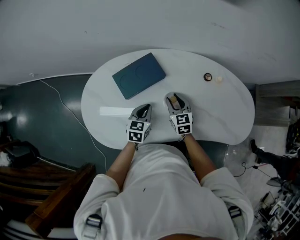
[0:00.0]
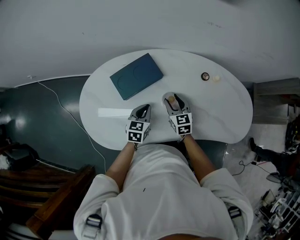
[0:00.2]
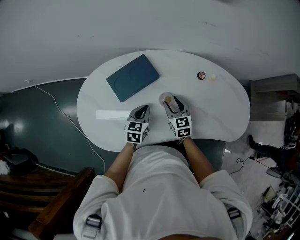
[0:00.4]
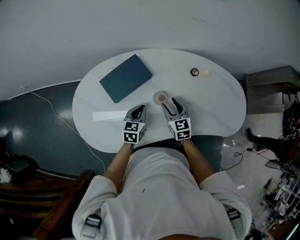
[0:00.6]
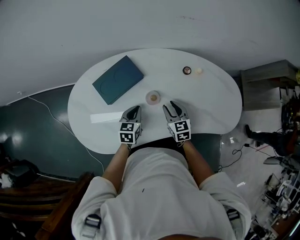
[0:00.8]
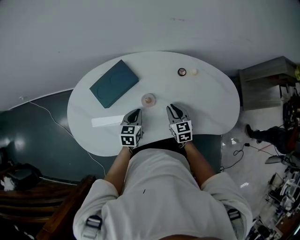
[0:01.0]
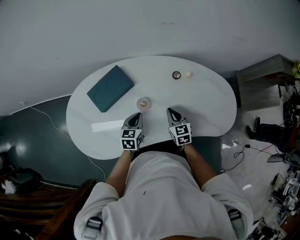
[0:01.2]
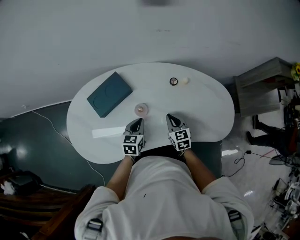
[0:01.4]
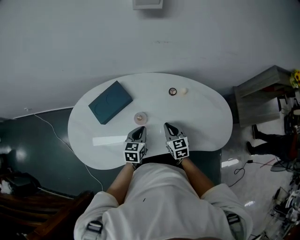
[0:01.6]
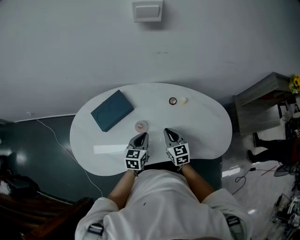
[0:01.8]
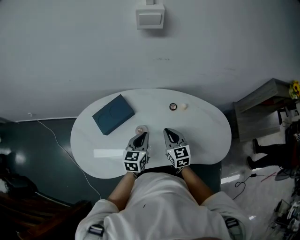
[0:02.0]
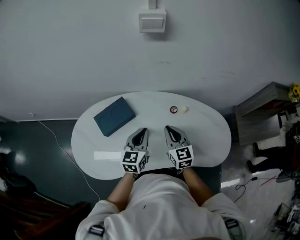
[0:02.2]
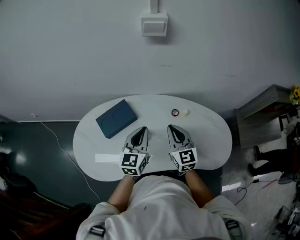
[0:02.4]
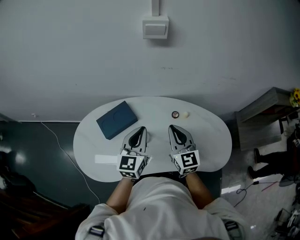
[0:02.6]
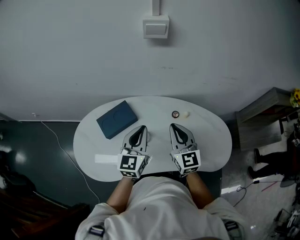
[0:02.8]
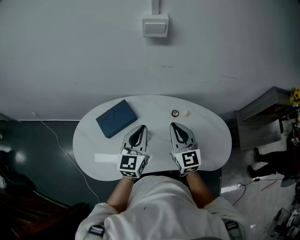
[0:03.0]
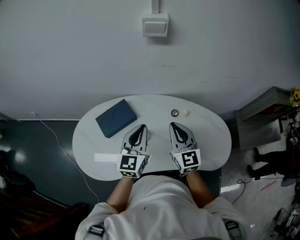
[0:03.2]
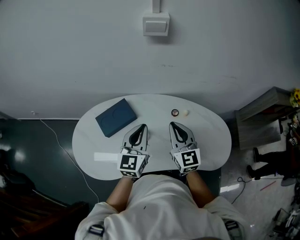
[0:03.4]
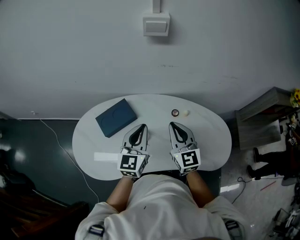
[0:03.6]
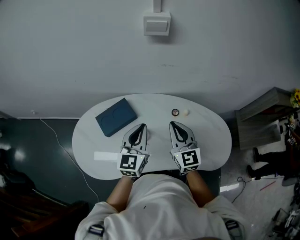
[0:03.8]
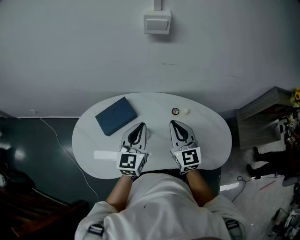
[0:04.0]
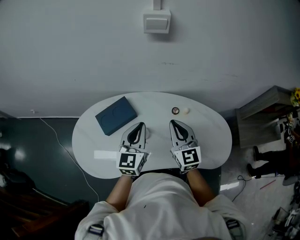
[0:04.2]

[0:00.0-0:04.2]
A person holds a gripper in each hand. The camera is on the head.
0:00.0 to 0:01.4: Both grippers move to the right, some 15 cm. The right gripper closes.
0:01.4 to 0:02.8: Both grippers move upward, some 25 cm. The left gripper turns by roughly 30 degrees. The right gripper rotates approximately 30 degrees.
0:02.8 to 0:04.2: Both grippers stay put.

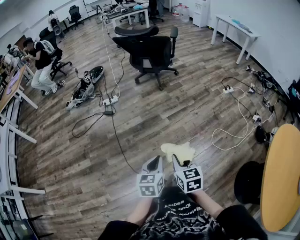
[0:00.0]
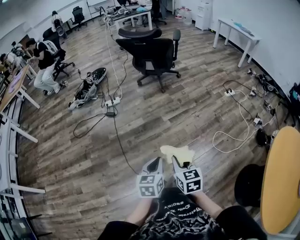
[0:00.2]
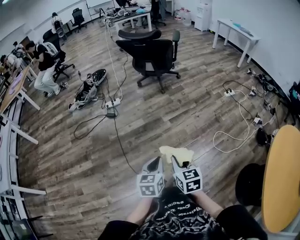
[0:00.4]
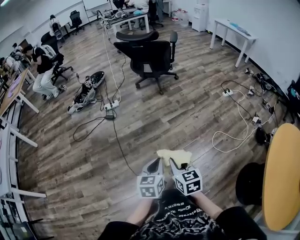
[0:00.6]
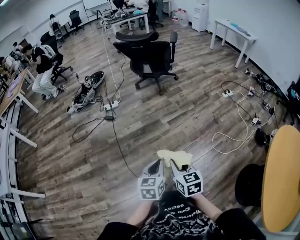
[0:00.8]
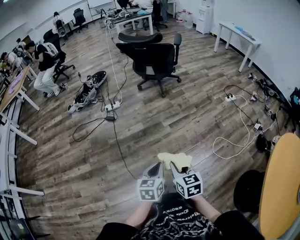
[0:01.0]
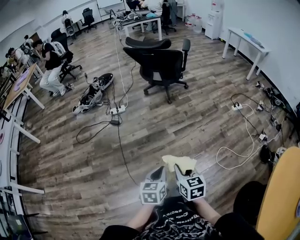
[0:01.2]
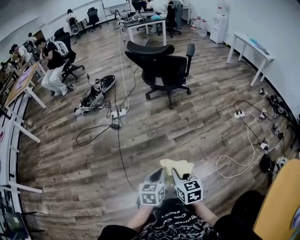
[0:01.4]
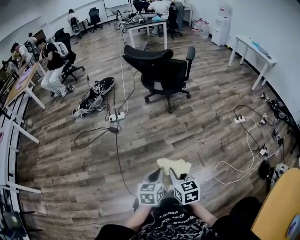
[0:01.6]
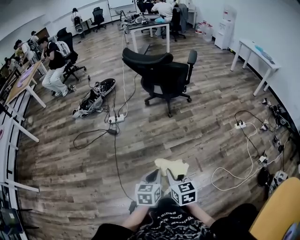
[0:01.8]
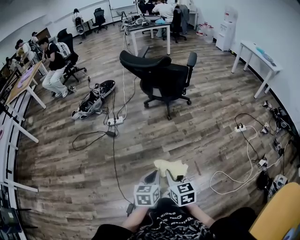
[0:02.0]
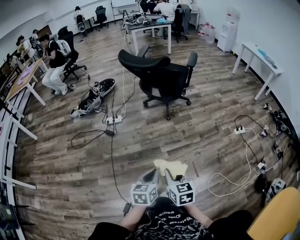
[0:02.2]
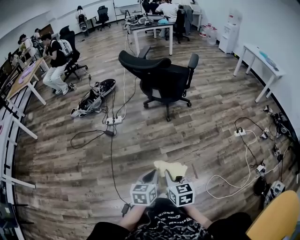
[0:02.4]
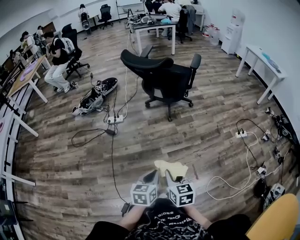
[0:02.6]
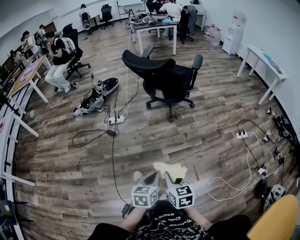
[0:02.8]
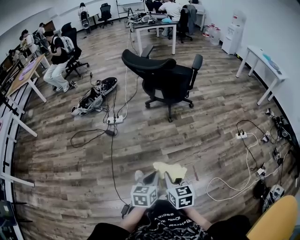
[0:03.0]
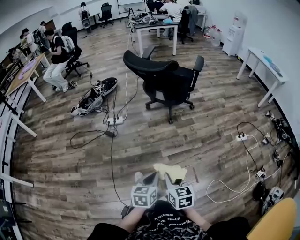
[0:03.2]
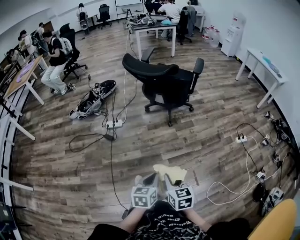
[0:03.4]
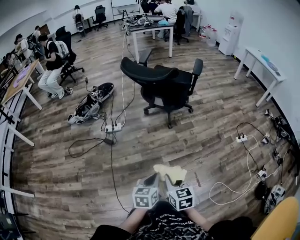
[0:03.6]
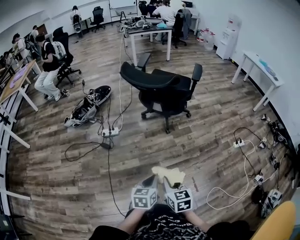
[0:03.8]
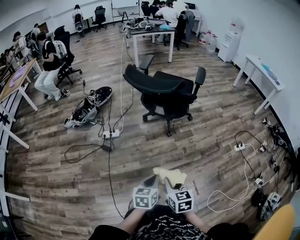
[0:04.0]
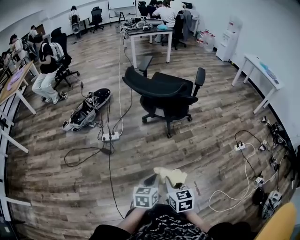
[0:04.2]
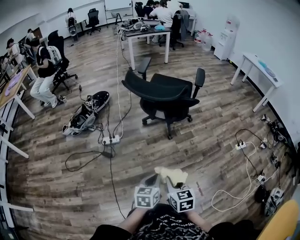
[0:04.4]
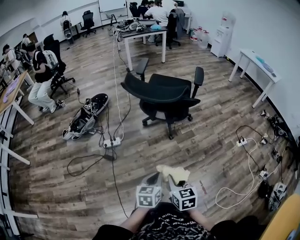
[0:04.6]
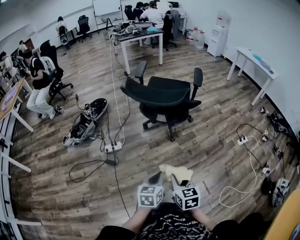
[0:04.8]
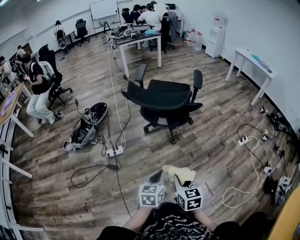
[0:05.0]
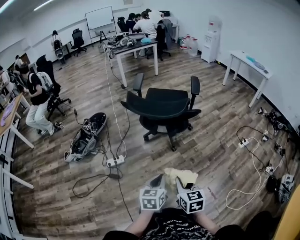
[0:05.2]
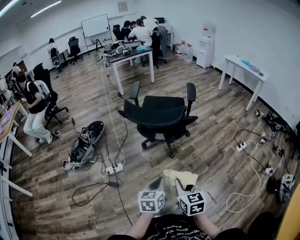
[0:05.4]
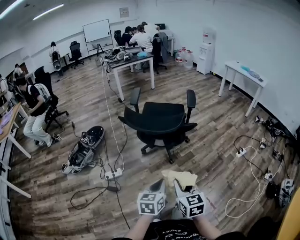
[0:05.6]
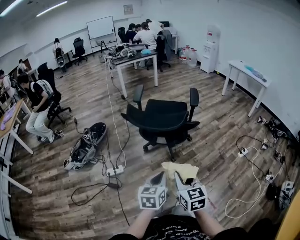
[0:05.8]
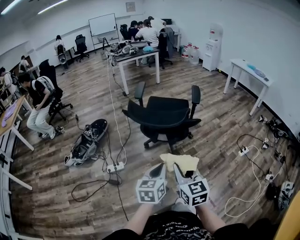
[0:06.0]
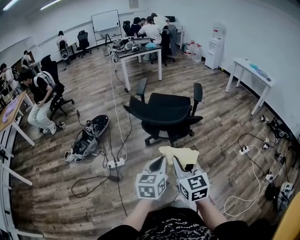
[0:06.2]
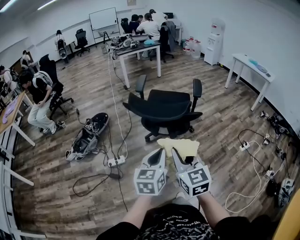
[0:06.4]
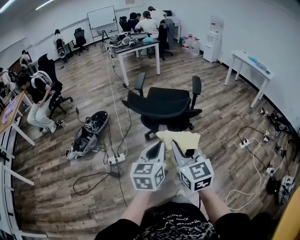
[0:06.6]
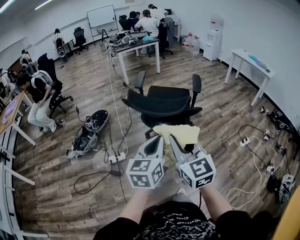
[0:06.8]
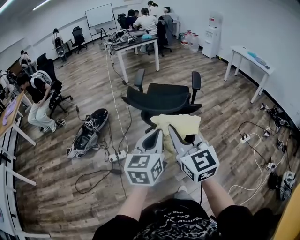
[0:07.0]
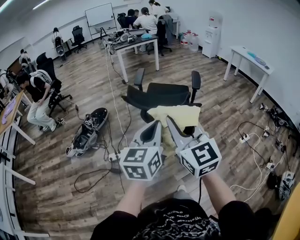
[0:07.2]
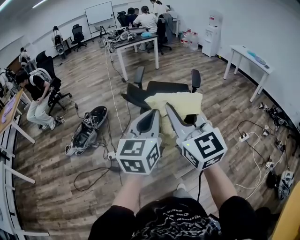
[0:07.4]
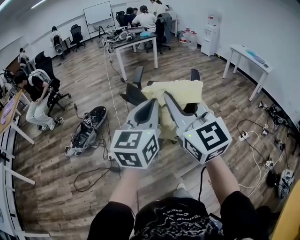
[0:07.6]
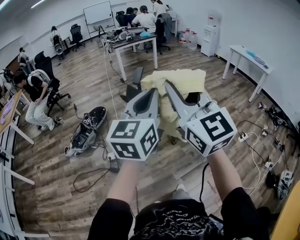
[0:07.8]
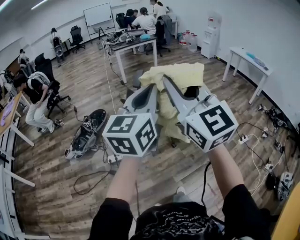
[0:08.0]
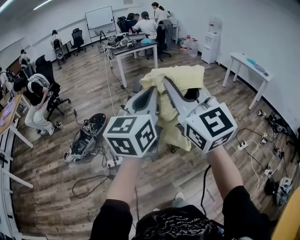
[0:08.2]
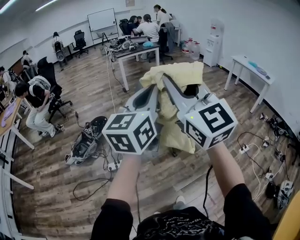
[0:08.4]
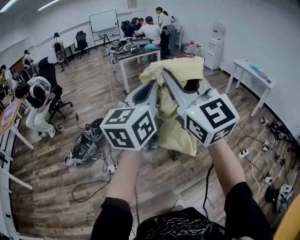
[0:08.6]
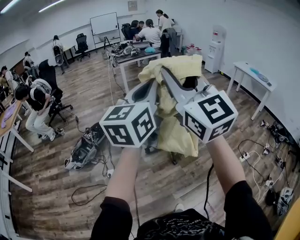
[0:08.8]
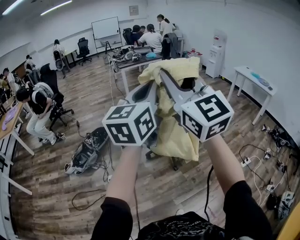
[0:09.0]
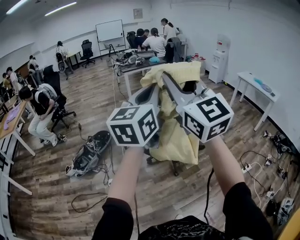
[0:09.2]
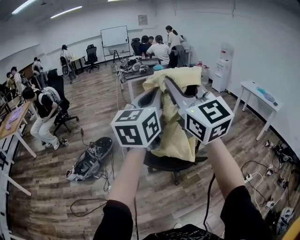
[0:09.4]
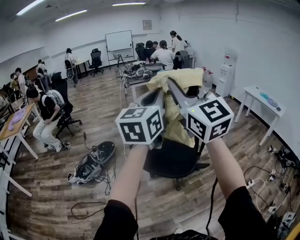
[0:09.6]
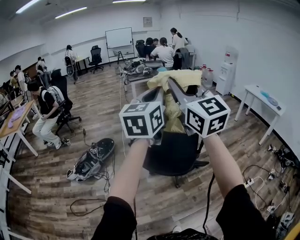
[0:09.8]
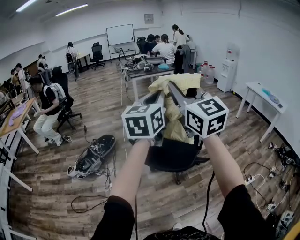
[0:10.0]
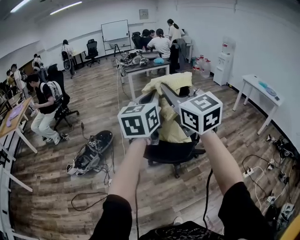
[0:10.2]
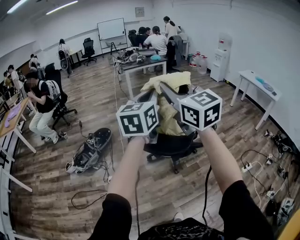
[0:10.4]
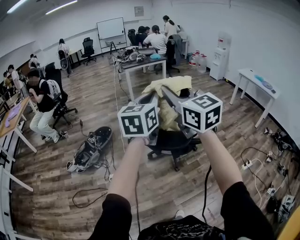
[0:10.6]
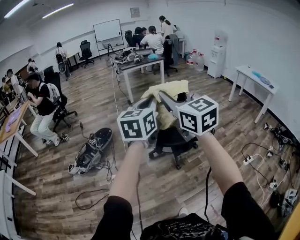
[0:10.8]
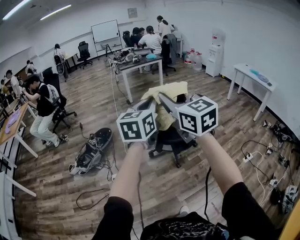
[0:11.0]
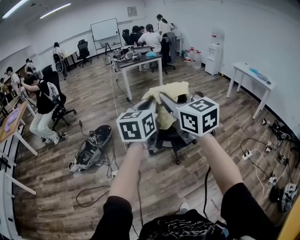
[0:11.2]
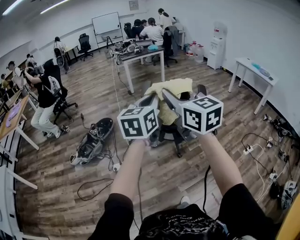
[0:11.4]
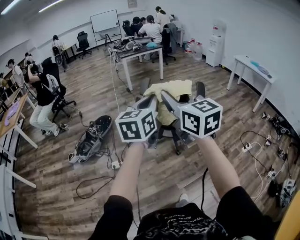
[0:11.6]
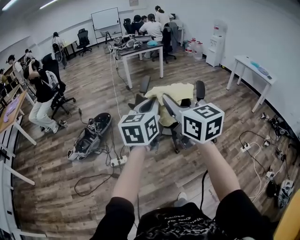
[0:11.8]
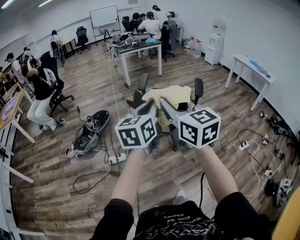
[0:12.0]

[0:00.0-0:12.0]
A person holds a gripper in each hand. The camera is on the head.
0:00.0 to 0:01.6: The grippers both shift forward by about 15 cm.
0:01.6 to 0:03.0: The grippers both shift forward by approximately 10 cm.
0:03.0 to 0:04.4: The right gripper travels forward and to the left by some 20 cm; the left gripper heads forward, covering about 20 cm.
0:04.4 to 0:06.0: The right gripper shifts roughly 20 cm upward and forward, and rotates about 20 degrees. The left gripper moves forward and upward, approximately 20 cm.
0:06.0 to 0:07.6: The grippers both shift upward by approximately 25 cm. The left gripper turns by approximately 30 degrees; the right gripper changes its angle by roughly 30 degrees.
0:07.6 to 0:09.0: The left gripper is displaced forward and upward by some 20 cm. Meanwhile the right gripper shifts about 20 cm upward and forward.
0:09.0 to 0:10.4: Both grippers travel together forward and downward, some 10 cm.
0:10.4 to 0:12.0: The grippers both shift backward and downward by roughly 20 cm.

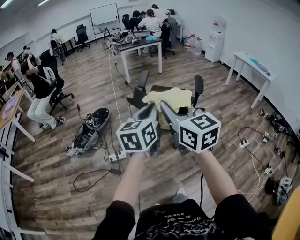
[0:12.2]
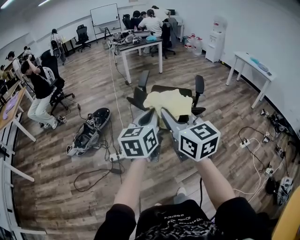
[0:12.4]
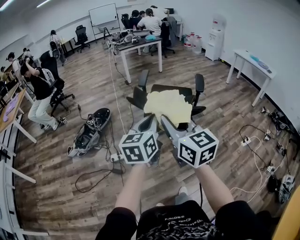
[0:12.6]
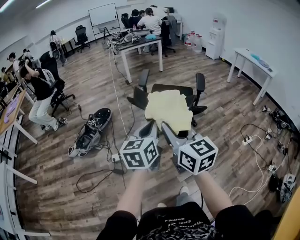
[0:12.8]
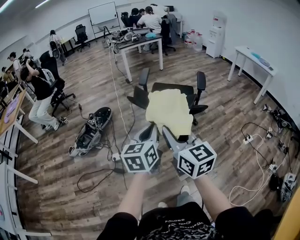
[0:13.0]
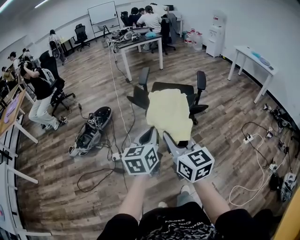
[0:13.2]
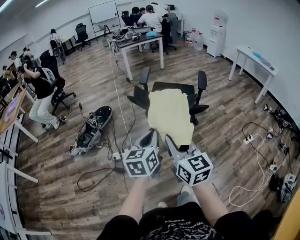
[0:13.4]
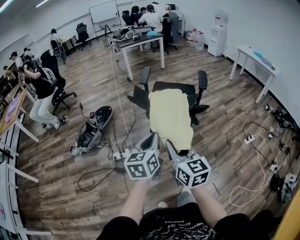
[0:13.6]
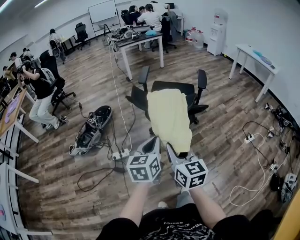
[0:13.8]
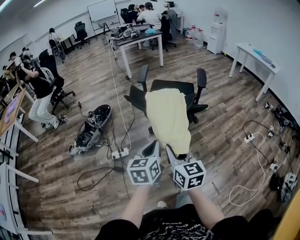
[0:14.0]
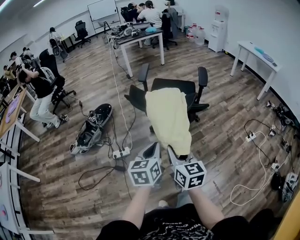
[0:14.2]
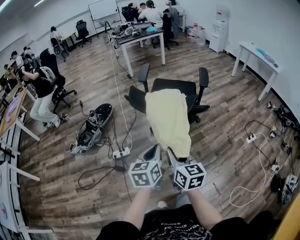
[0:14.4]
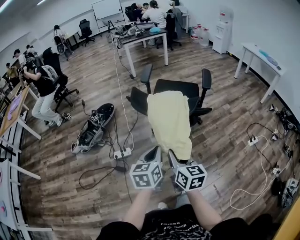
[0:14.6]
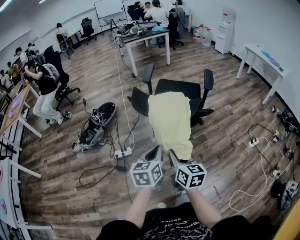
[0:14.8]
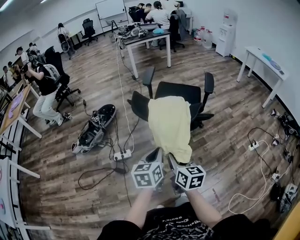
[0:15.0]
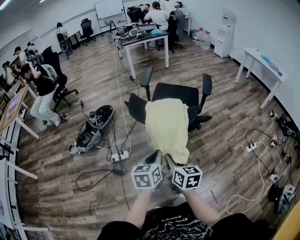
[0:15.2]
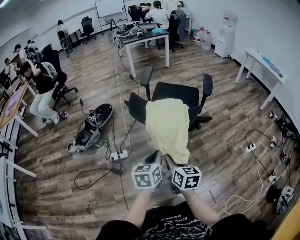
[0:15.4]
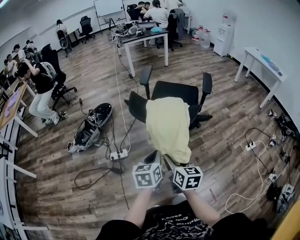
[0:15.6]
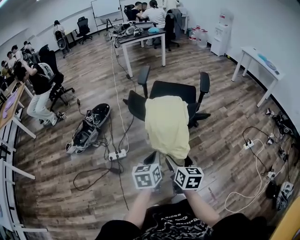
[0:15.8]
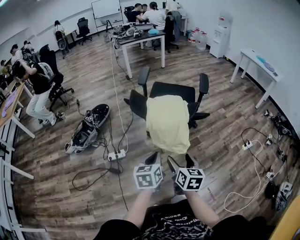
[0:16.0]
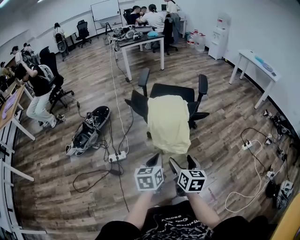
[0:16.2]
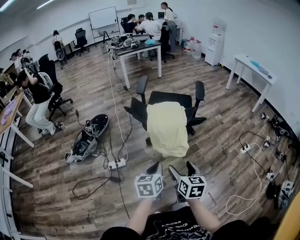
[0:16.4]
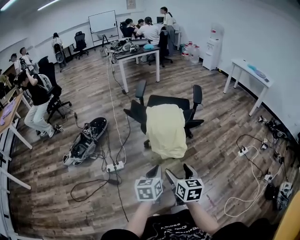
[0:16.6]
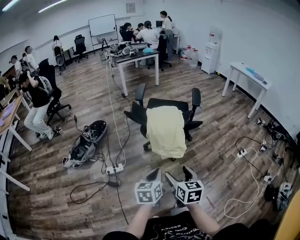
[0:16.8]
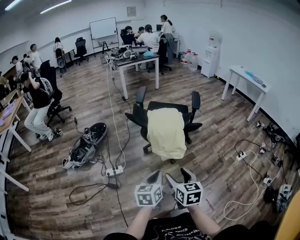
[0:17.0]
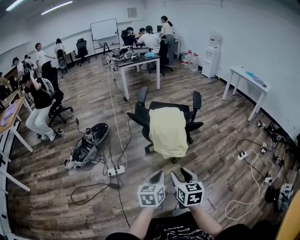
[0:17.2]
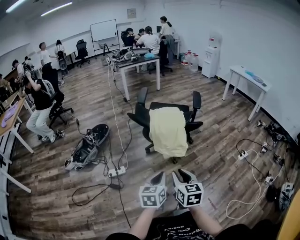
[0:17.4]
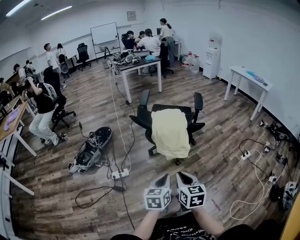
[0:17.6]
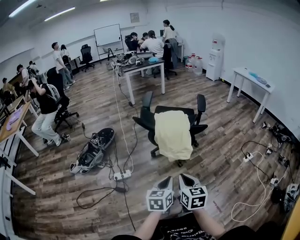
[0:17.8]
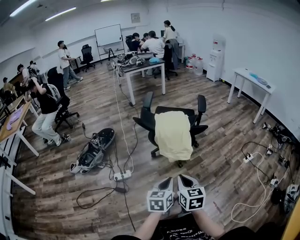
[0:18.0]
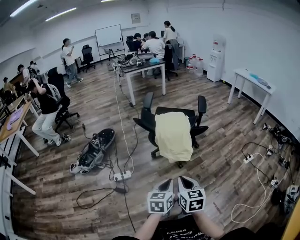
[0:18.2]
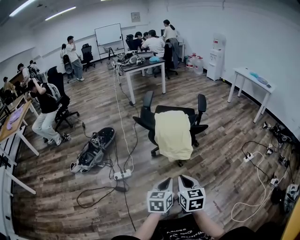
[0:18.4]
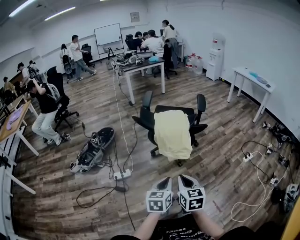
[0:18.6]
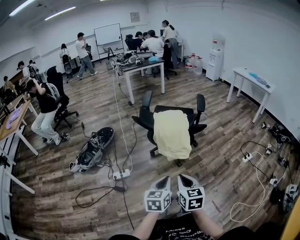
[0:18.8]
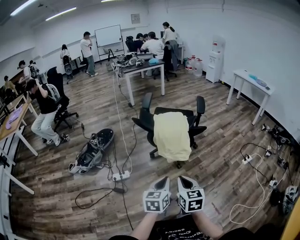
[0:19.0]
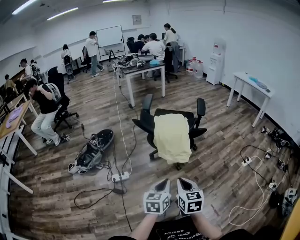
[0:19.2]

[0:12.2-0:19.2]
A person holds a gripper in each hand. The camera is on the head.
0:12.2 to 0:13.6: Both grippers move downward, approximately 15 cm.
0:13.6 to 0:15.0: The grippers both shift downward by about 10 cm.
0:15.0 to 0:16.4: The left gripper ends up roughly 5 cm from where it was. Meanwhile the right gripper ends up roughly 5 cm from where it was, and opens its fingers.
0:16.4 to 0:17.8: The grippers both shift backward by some 5 cm. The right gripper closes up.
0:17.8 to 0:19.2: Both grippers stay put.
